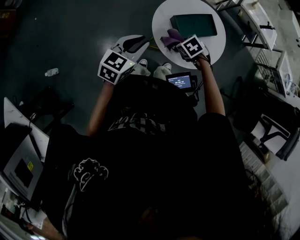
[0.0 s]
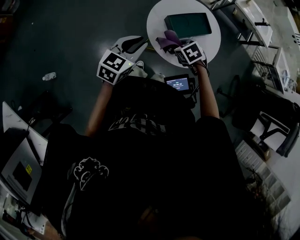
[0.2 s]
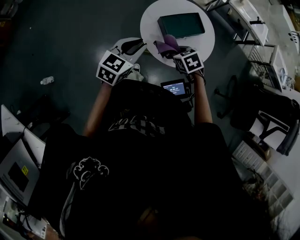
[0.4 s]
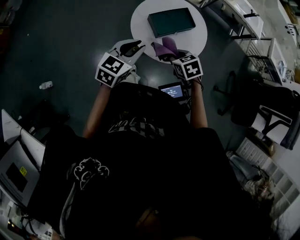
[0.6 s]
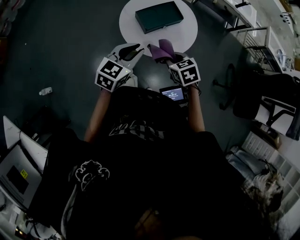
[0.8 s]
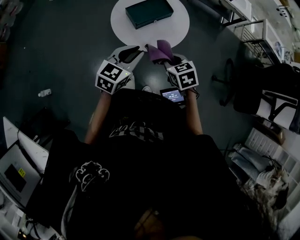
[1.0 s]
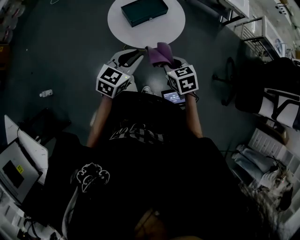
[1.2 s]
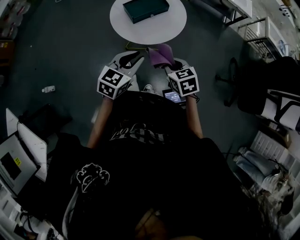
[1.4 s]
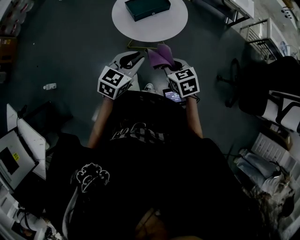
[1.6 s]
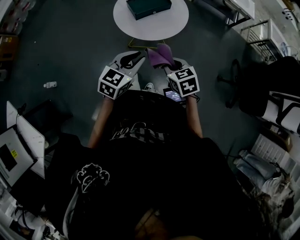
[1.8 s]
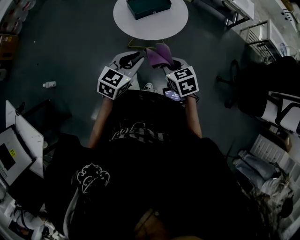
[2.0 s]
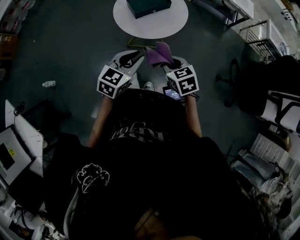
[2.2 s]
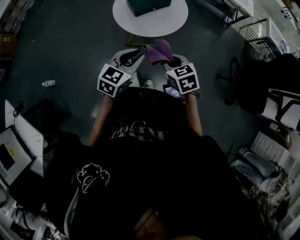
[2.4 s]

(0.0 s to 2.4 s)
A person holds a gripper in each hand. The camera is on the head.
0.0 s - 1.2 s: The left gripper heads to the right and backward, covering about 25 cm. Meanwhile the right gripper goes about 30 cm backward, to the right and upward, and swivels roughly 40 degrees.
1.2 s - 2.4 s: The grippers both shift backward by approximately 5 cm.

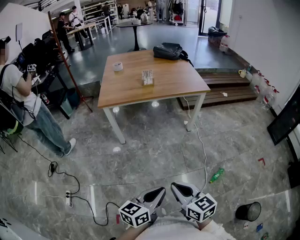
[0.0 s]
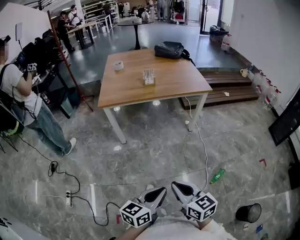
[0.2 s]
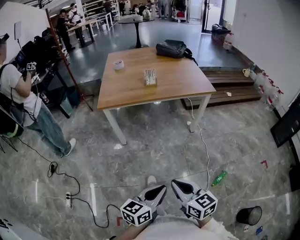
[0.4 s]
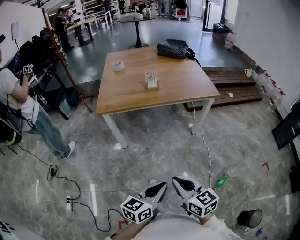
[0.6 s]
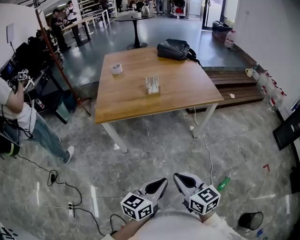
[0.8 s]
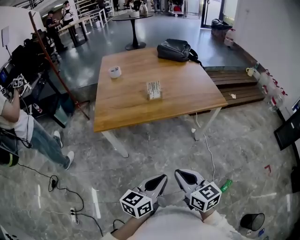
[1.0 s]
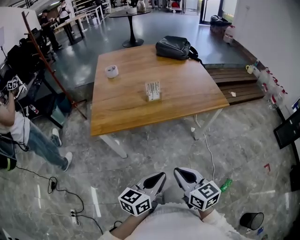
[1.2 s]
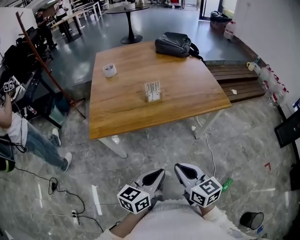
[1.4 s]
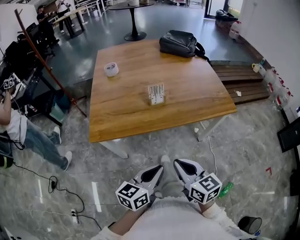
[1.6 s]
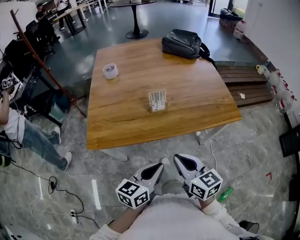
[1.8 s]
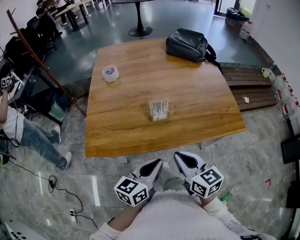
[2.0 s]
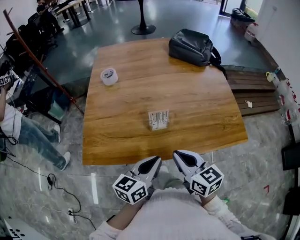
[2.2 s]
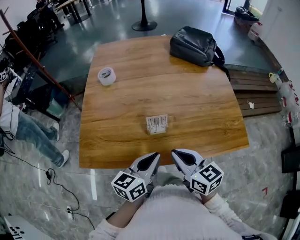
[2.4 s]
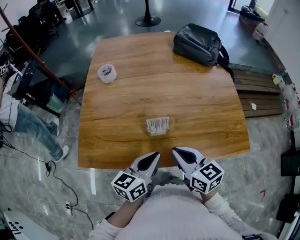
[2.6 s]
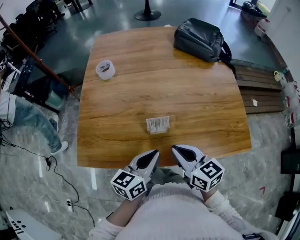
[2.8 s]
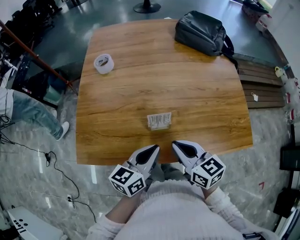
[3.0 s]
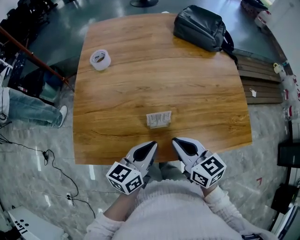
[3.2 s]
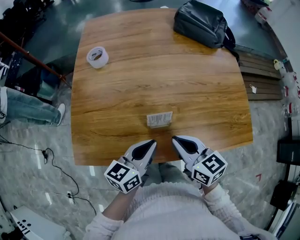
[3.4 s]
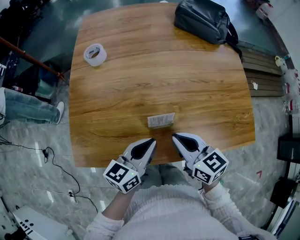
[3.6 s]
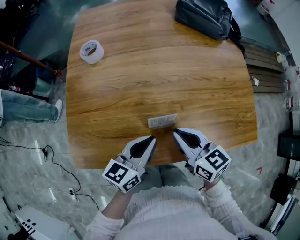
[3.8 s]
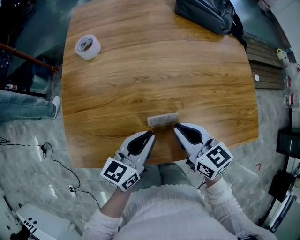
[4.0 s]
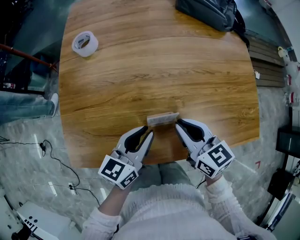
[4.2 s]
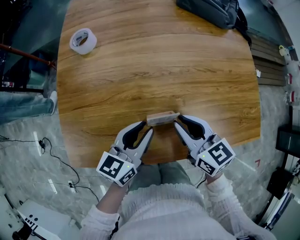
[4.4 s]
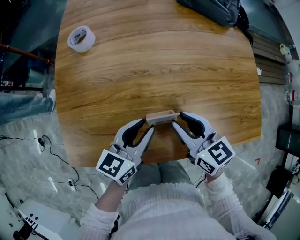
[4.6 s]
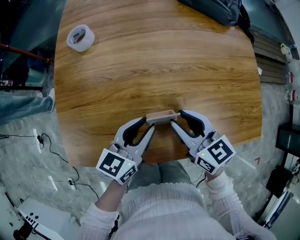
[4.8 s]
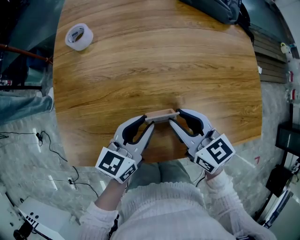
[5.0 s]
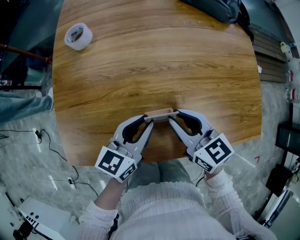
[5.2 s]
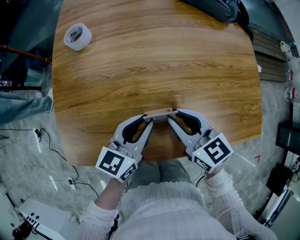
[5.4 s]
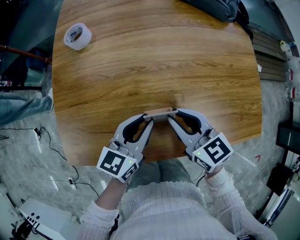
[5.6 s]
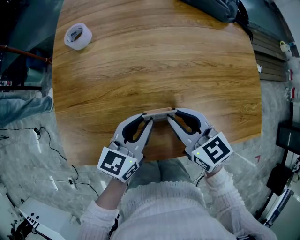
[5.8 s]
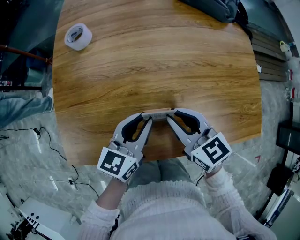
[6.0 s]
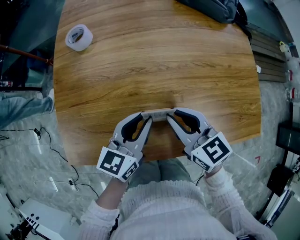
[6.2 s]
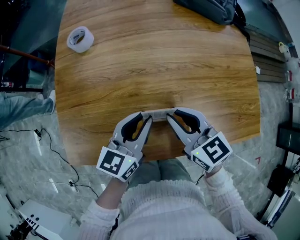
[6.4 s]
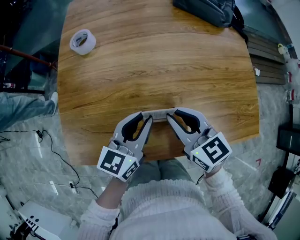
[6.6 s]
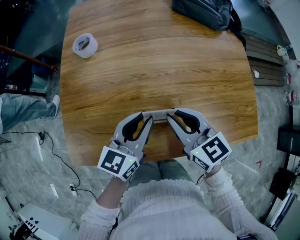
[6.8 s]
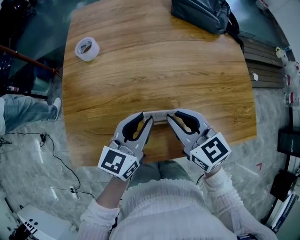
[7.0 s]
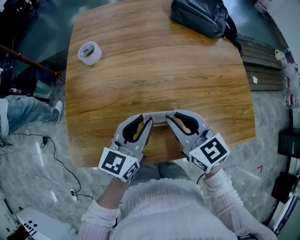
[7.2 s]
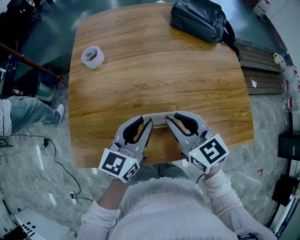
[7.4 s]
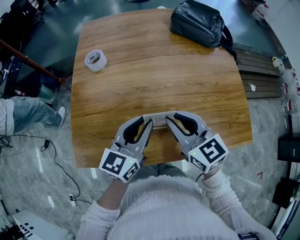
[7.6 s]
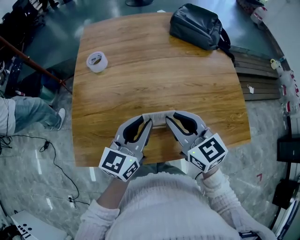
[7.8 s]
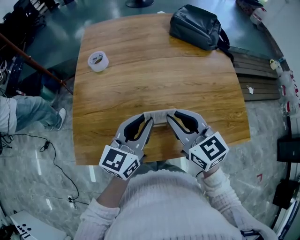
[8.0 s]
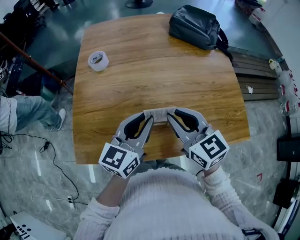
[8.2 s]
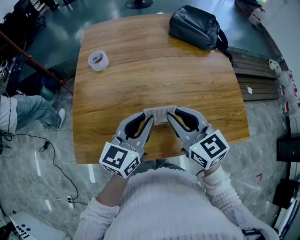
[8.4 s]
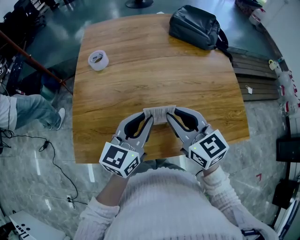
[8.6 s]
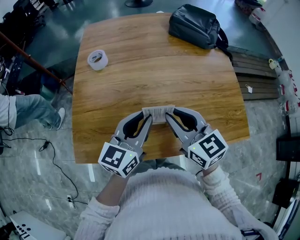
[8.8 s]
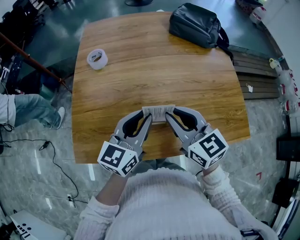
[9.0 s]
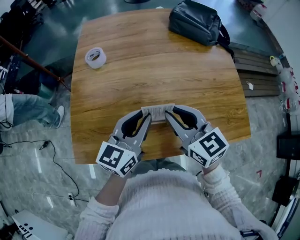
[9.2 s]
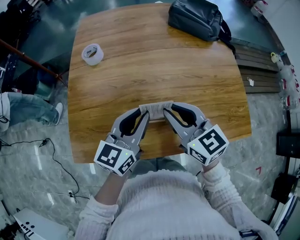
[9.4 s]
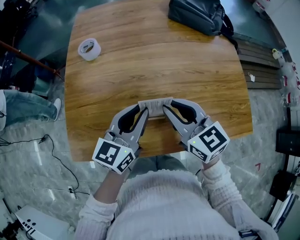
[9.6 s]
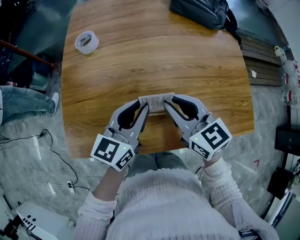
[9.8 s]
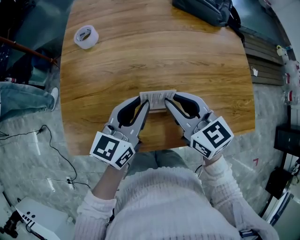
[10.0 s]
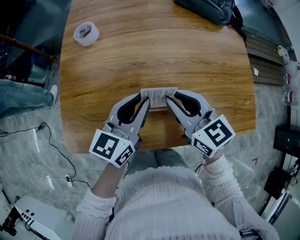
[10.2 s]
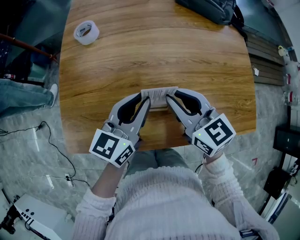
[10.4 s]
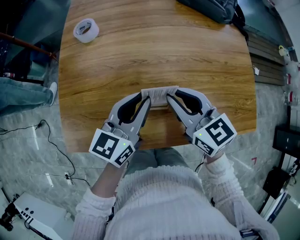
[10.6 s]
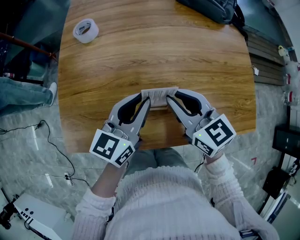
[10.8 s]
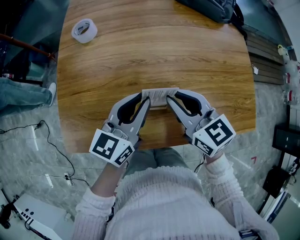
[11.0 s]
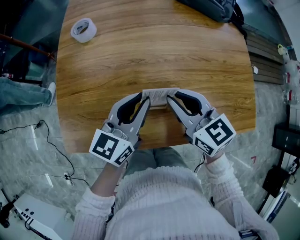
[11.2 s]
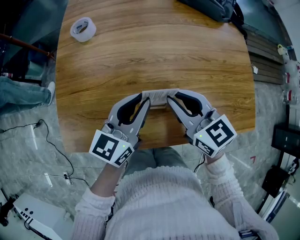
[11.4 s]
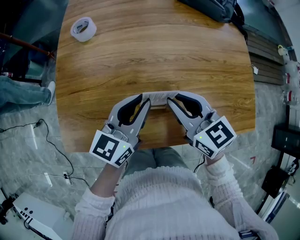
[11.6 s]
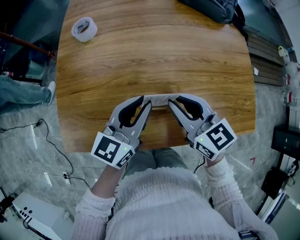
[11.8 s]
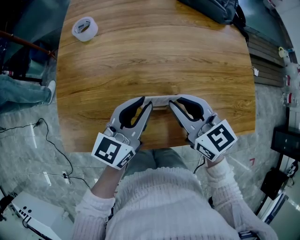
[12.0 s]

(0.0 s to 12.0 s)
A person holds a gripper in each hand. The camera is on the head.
0.0 s - 1.6 s: Both grippers are carried forward, about 50 cm.
1.6 s - 3.0 s: Both grippers travel together forward, roughly 30 cm.
3.0 s - 4.4 s: Both grippers travel together forward, approximately 10 cm. The left gripper opens.
4.4 s - 6.0 s: There are only small adjustments of the grippers.
6.0 s - 7.6 s: Both grippers move upward, roughly 10 cm.
7.6 s - 9.0 s: The grippers move only a little.
9.0 s - 10.4 s: The right gripper travels downward by about 5 cm, while the left gripper ends up about 5 cm from where it was.
10.4 s - 12.0 s: The grippers make only small movements.

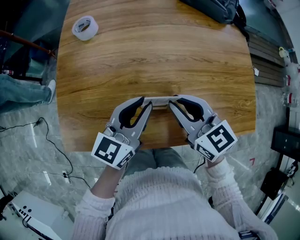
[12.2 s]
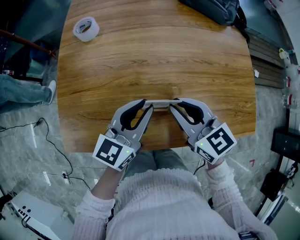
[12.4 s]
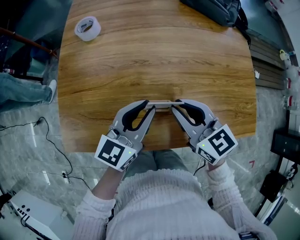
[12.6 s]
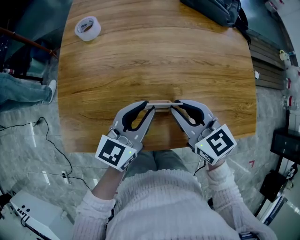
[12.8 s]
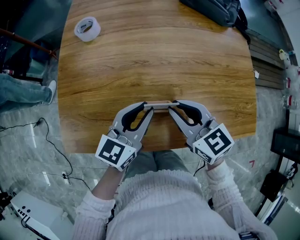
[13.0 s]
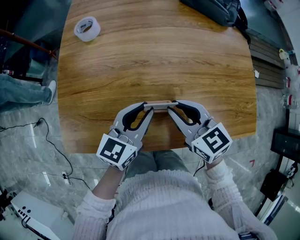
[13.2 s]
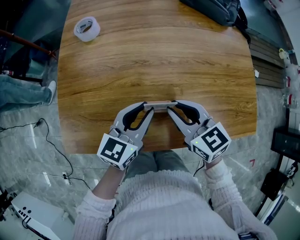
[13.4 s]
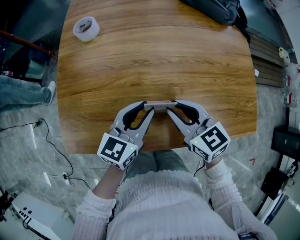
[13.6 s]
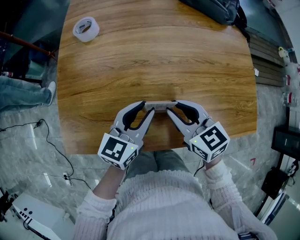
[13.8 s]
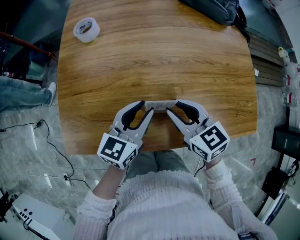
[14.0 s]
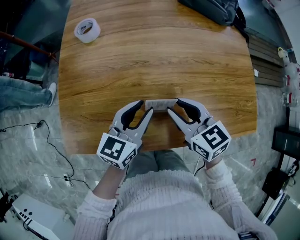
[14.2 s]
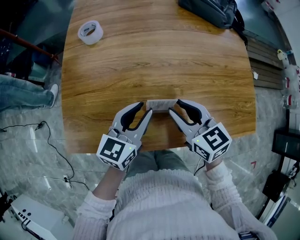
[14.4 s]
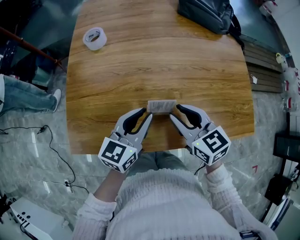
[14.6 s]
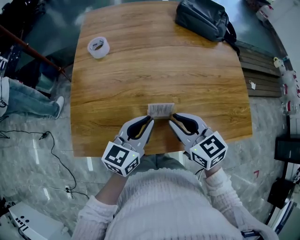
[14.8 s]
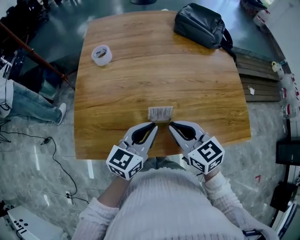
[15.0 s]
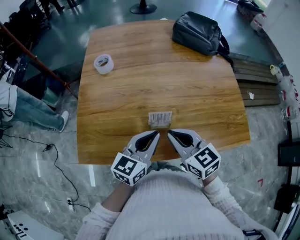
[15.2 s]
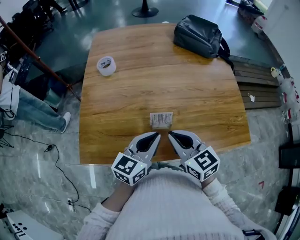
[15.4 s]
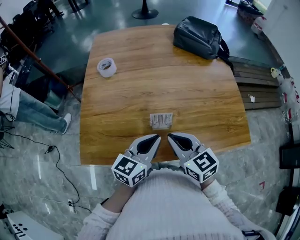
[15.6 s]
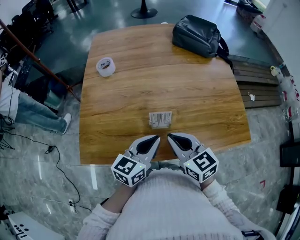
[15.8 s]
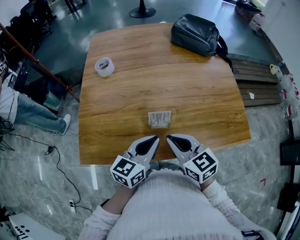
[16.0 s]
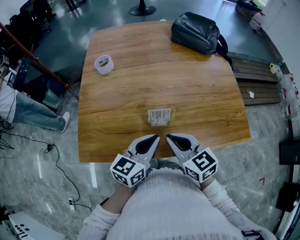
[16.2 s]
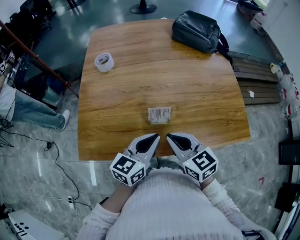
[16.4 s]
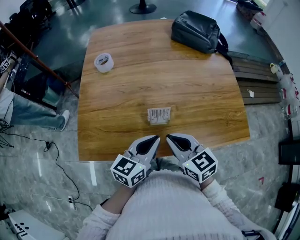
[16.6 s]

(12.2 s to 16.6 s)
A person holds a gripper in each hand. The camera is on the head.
12.2 s - 13.6 s: The grippers move only a little.
13.6 s - 15.2 s: Both grippers move backward and upward, roughly 10 cm. The right gripper closes its fingers.
15.2 s - 16.6 s: The grippers move only a little.

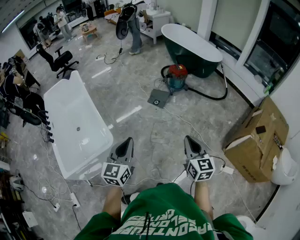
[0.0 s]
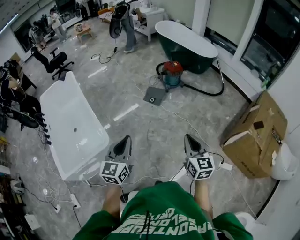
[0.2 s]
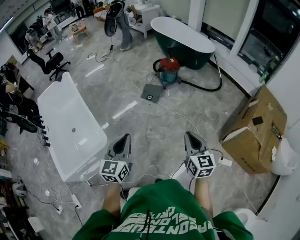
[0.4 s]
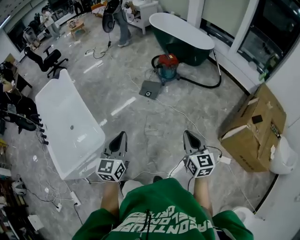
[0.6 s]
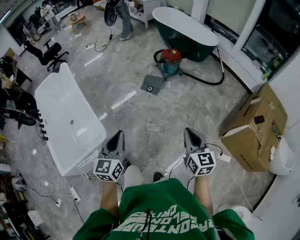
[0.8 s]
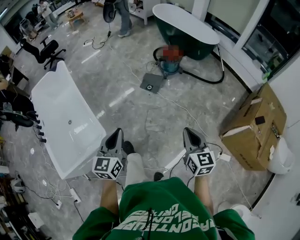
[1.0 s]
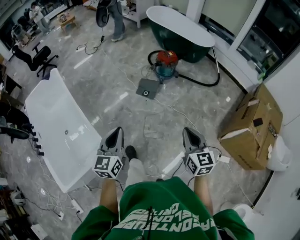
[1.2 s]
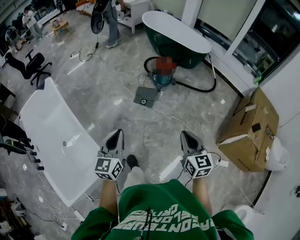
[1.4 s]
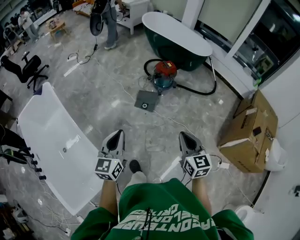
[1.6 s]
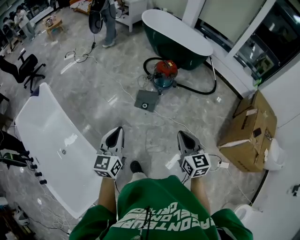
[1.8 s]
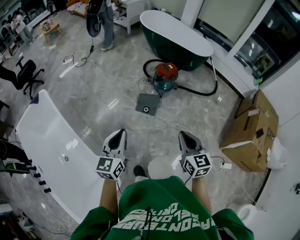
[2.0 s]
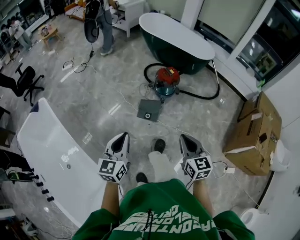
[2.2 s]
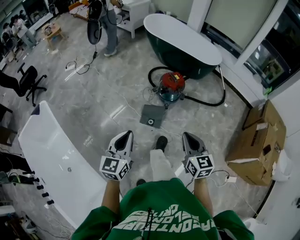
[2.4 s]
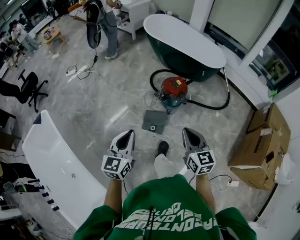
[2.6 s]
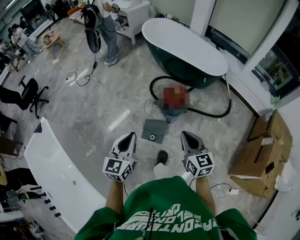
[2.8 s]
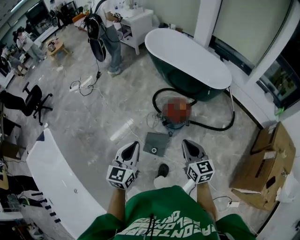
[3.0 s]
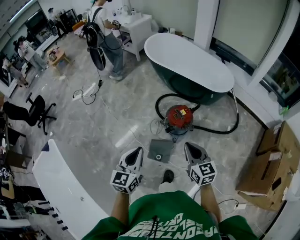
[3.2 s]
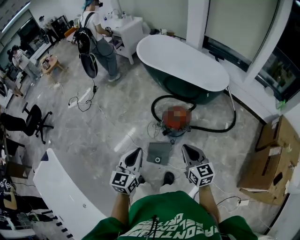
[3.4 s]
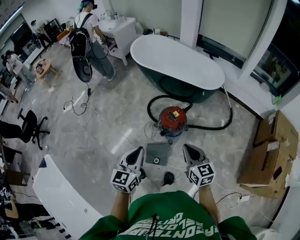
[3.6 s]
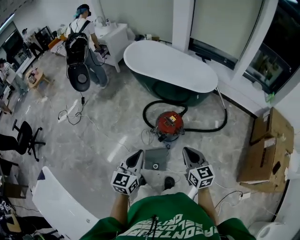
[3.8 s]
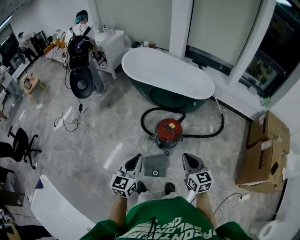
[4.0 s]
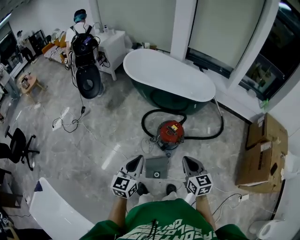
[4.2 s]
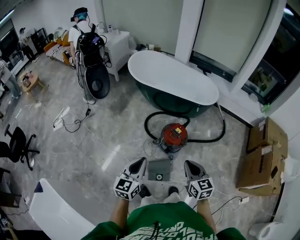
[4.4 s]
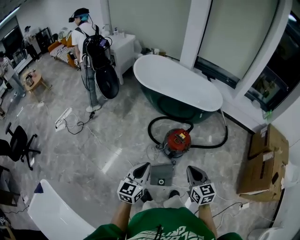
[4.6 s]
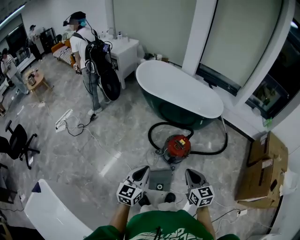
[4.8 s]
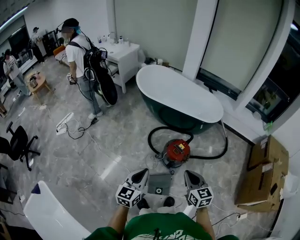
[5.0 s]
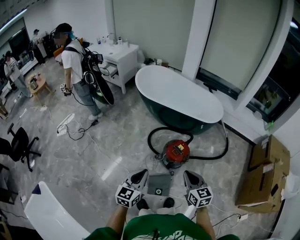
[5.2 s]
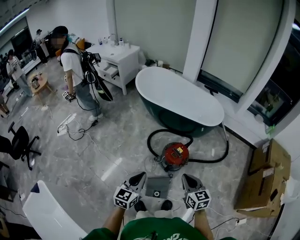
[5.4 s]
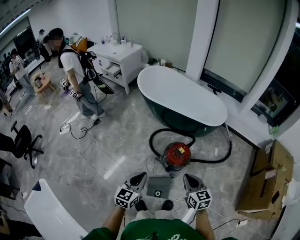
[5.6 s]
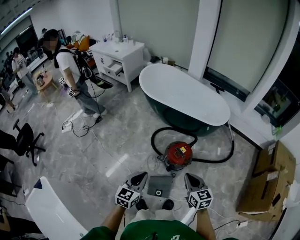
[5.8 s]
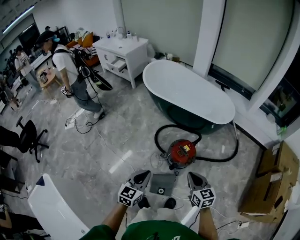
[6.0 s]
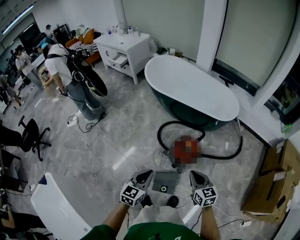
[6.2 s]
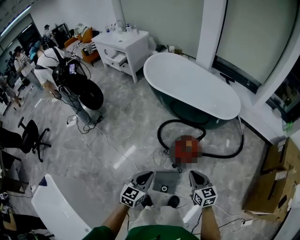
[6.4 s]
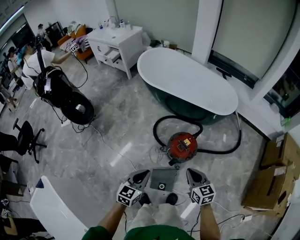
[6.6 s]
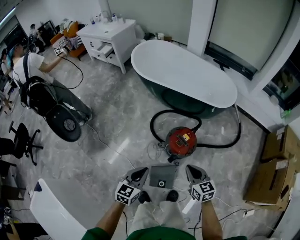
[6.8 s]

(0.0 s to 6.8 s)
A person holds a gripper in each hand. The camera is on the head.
0.0 s - 1.4 s: The grippers both shift forward by some 25 cm.
1.4 s - 2.8 s: The two grippers travel together, forward, about 50 cm.
2.8 s - 4.0 s: Both grippers travel together forward, approximately 20 cm.
4.0 s - 5.4 s: The left gripper shifts approximately 5 cm to the left, while the right gripper heads to the left and forward, covering some 10 cm.
5.4 s - 6.8 s: The two grippers go about 15 cm downward and forward.
